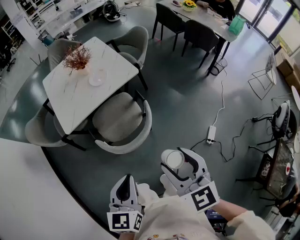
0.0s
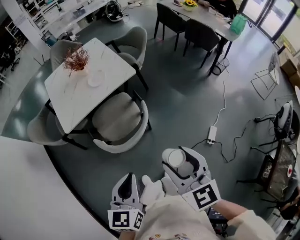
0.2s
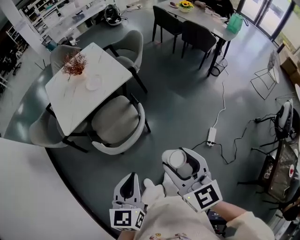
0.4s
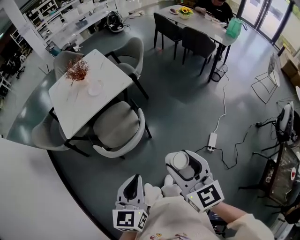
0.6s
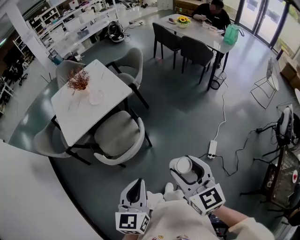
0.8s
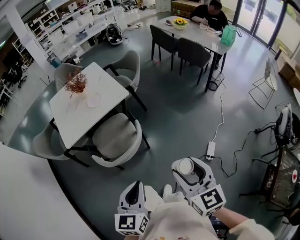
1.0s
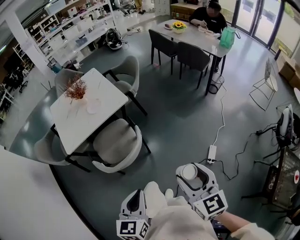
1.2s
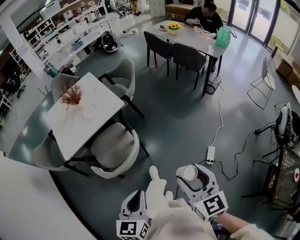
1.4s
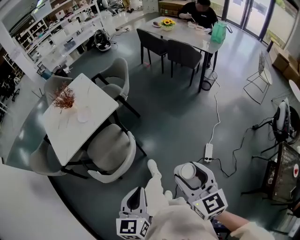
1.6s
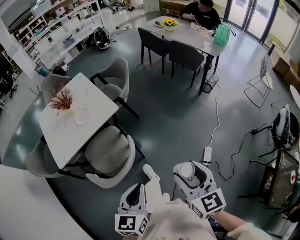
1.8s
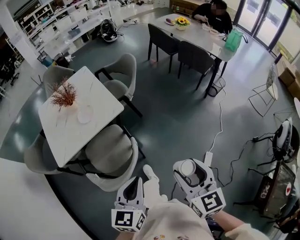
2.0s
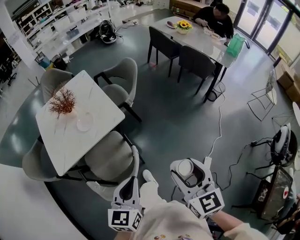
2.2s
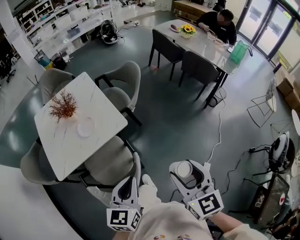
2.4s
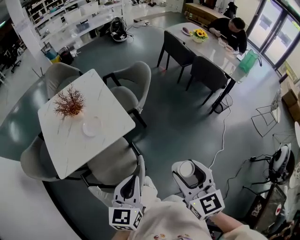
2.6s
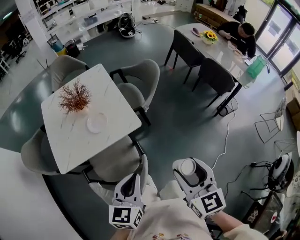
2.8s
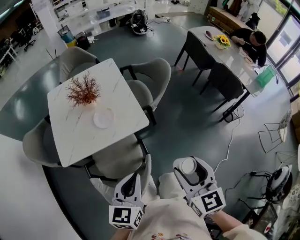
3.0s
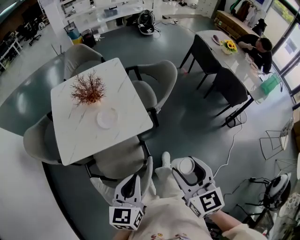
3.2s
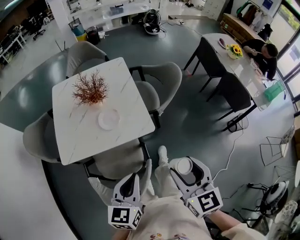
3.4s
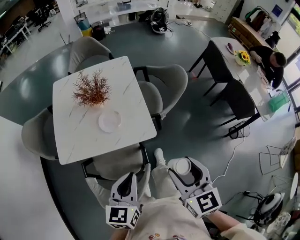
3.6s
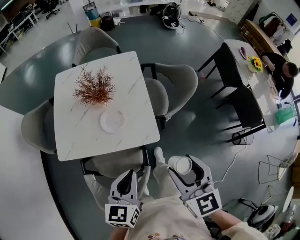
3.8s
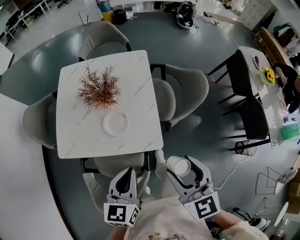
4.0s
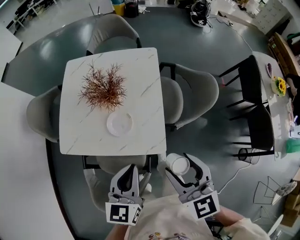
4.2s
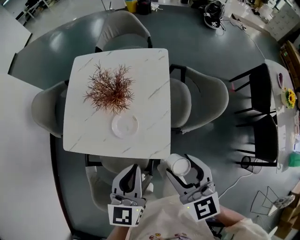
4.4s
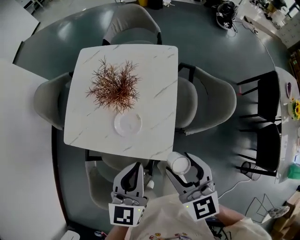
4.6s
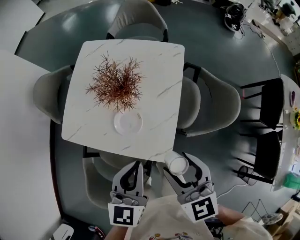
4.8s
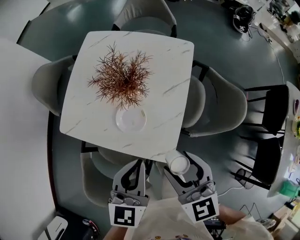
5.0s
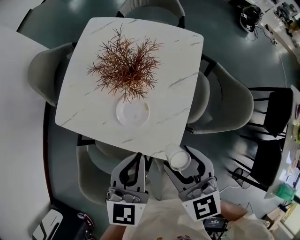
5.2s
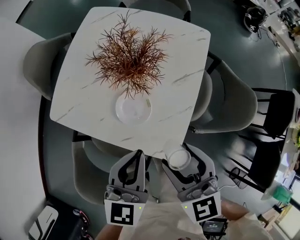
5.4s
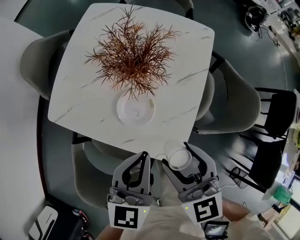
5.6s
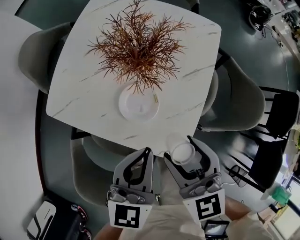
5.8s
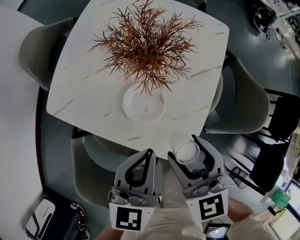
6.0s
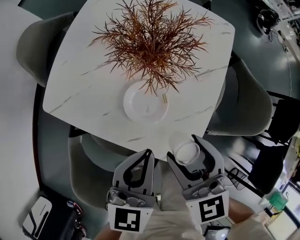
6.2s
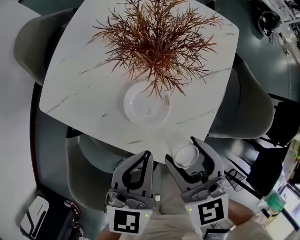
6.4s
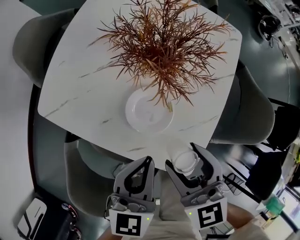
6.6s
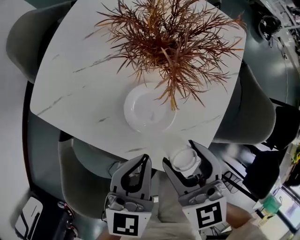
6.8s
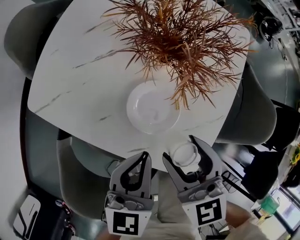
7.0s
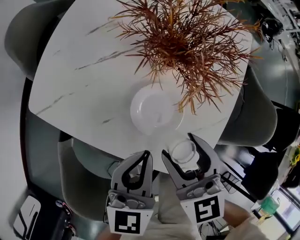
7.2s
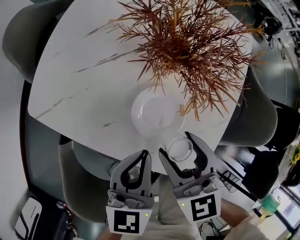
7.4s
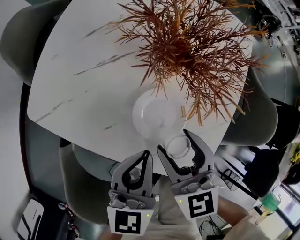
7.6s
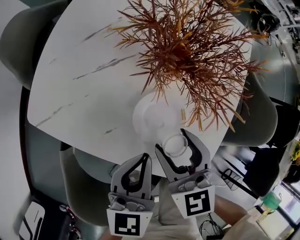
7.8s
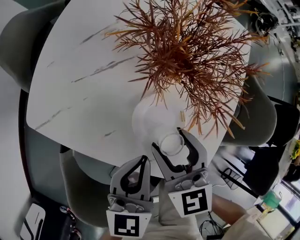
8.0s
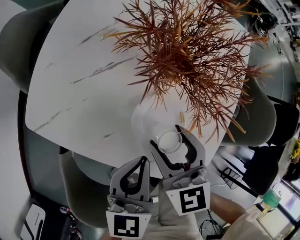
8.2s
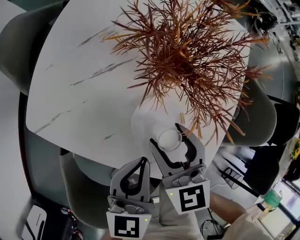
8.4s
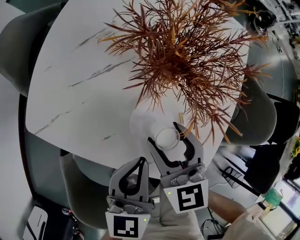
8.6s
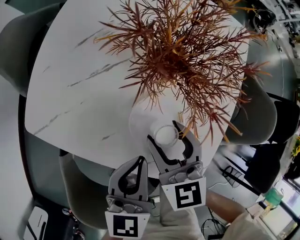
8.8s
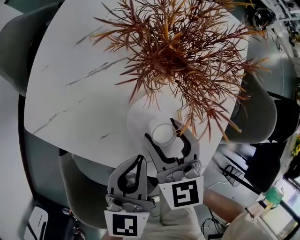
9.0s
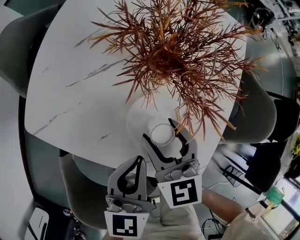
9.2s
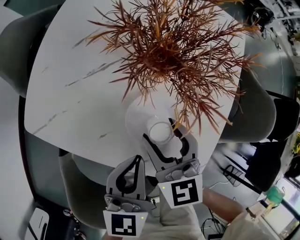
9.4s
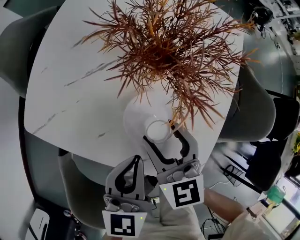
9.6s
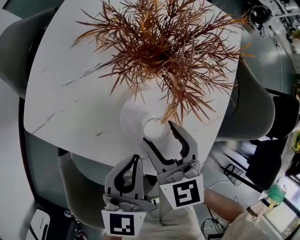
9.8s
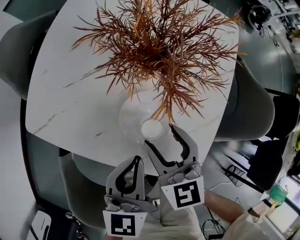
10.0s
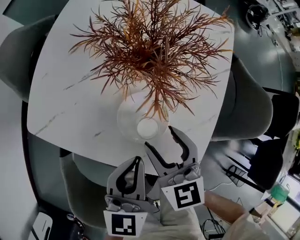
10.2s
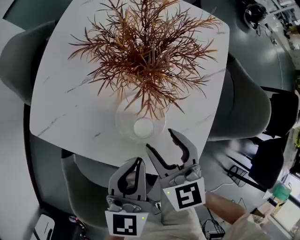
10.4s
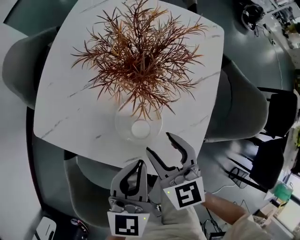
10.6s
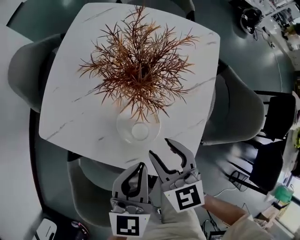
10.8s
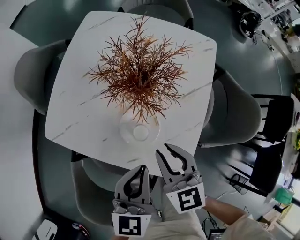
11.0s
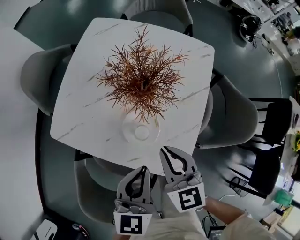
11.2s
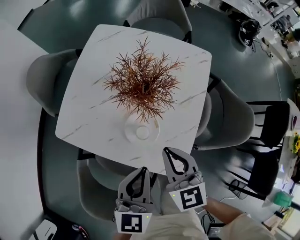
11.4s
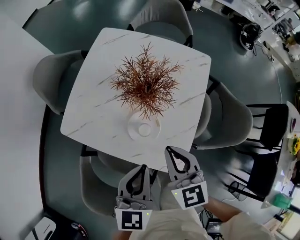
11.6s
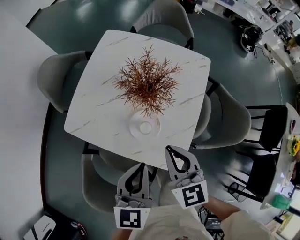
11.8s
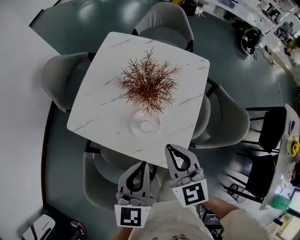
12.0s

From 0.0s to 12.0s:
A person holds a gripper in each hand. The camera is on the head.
From 0.0s to 1.6s: The two grippers go some 20 cm to the right.
From 1.6s to 3.0s: Both grippers travel together forward and to the left, roughly 35 cm.
From 3.0s to 4.4s: The right gripper ends up approximately 30 cm from where it was, and turns by approximately 40 degrees. The left gripper changes place by approximately 25 cm, and changes its angle by about 30 degrees.
From 4.4s to 6.0s: The left gripper heads downward and forward, covering some 15 cm; the right gripper travels downward, forward and to the left by some 20 cm, and turns by approximately 20 degrees.
From 6.0s to 7.6s: The right gripper heads downward, to the left and forward, covering some 15 cm, while the left gripper moves downward and to the left, approximately 10 cm.
From 7.6s to 9.0s: The right gripper moves roughly 5 cm.
From 9.0s to 10.4s: The right gripper moves some 5 cm. The left gripper changes place by some 5 cm.
From 10.4s to 12.0s: Both grippers travel together upward, roughly 20 cm. The right gripper closes up.

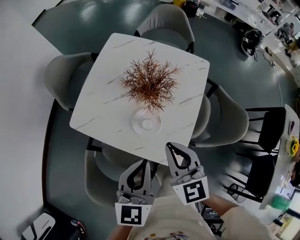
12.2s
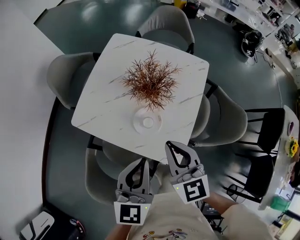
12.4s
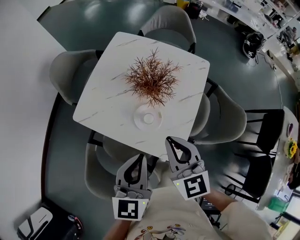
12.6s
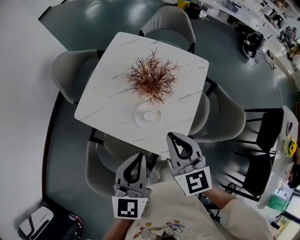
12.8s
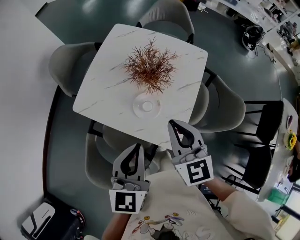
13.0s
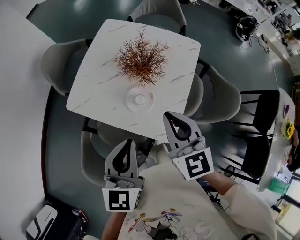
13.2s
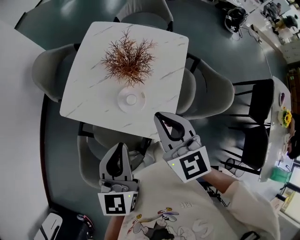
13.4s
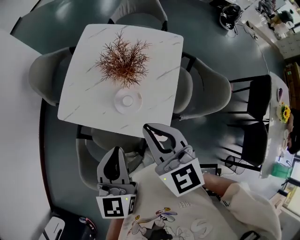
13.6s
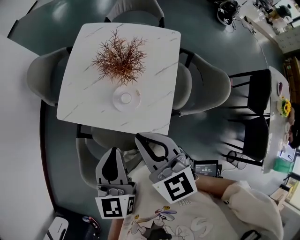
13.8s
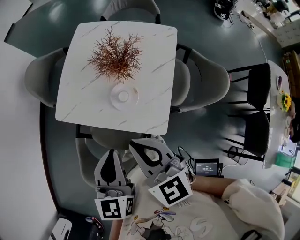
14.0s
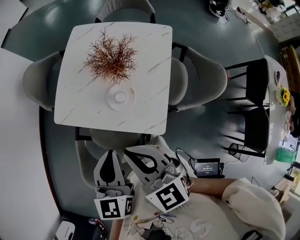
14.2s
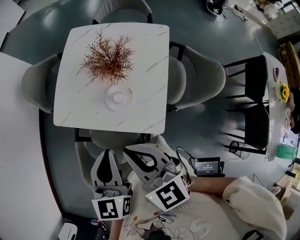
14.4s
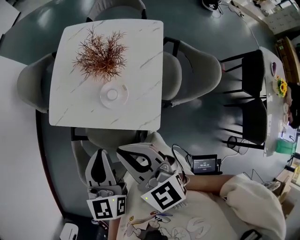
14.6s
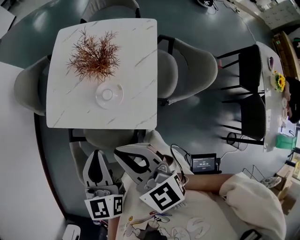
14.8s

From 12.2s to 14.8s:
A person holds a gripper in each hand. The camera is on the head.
From 12.2s to 13.4s: The right gripper travels upward by approximately 5 cm. The left gripper moves roughly 5 cm.
From 13.4s to 14.8s: The right gripper is displaced backward and to the left by approximately 10 cm.

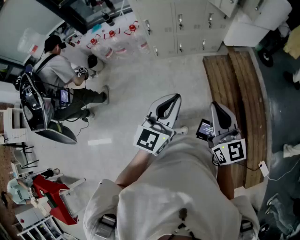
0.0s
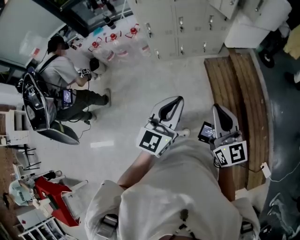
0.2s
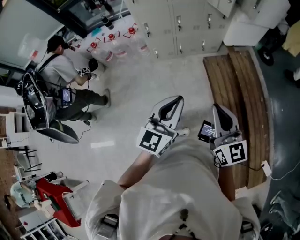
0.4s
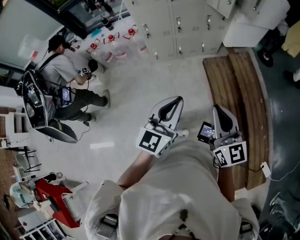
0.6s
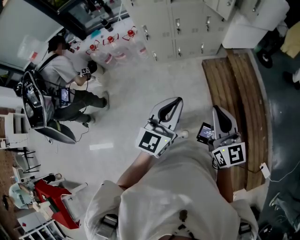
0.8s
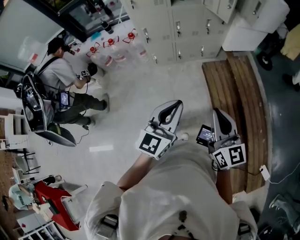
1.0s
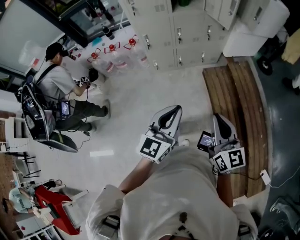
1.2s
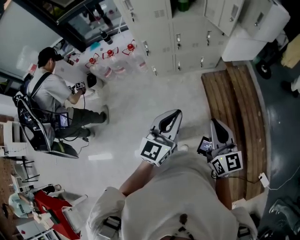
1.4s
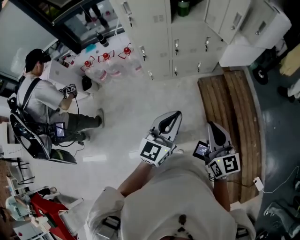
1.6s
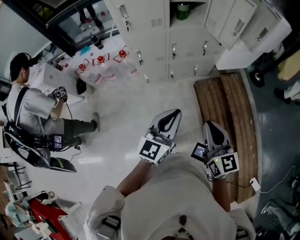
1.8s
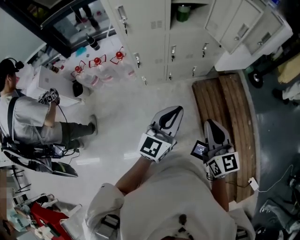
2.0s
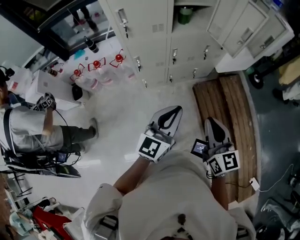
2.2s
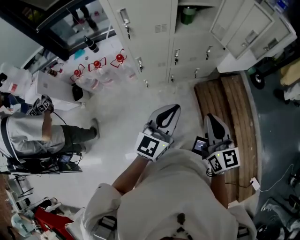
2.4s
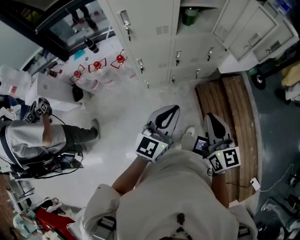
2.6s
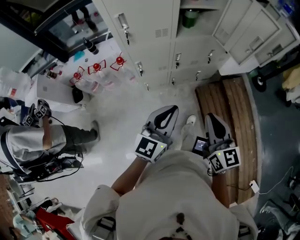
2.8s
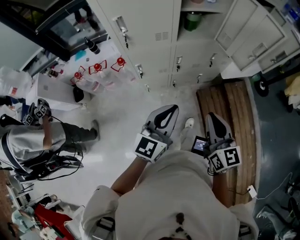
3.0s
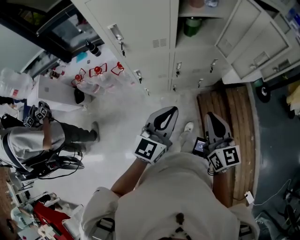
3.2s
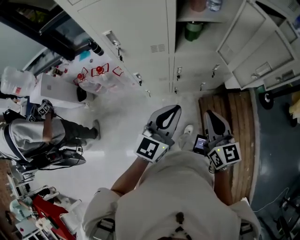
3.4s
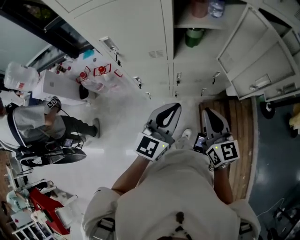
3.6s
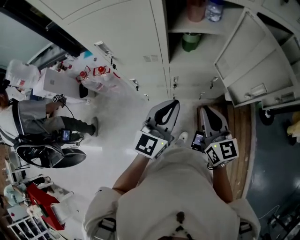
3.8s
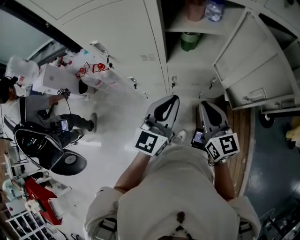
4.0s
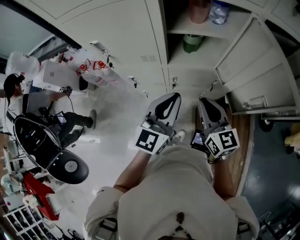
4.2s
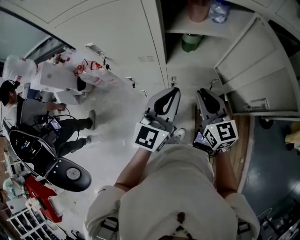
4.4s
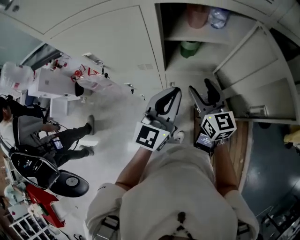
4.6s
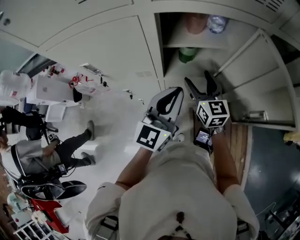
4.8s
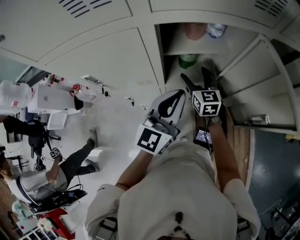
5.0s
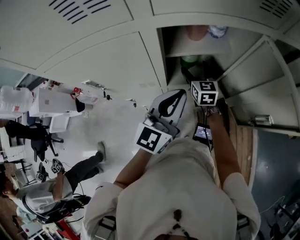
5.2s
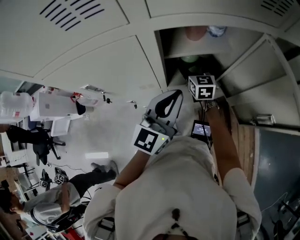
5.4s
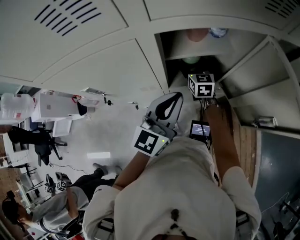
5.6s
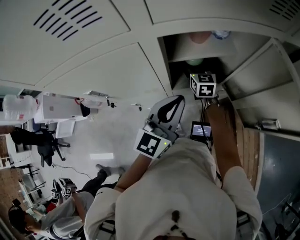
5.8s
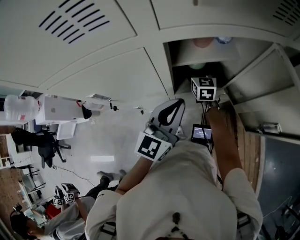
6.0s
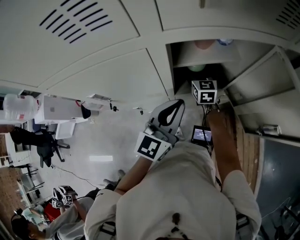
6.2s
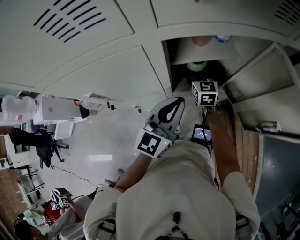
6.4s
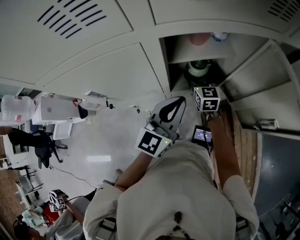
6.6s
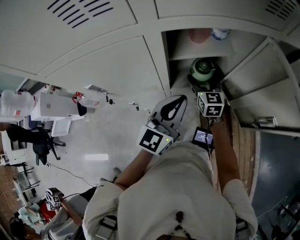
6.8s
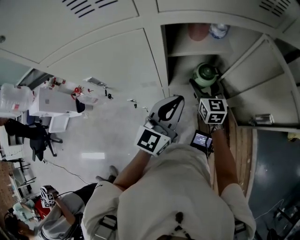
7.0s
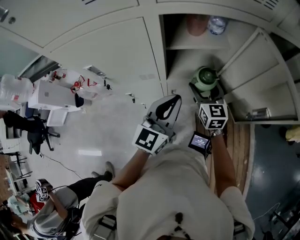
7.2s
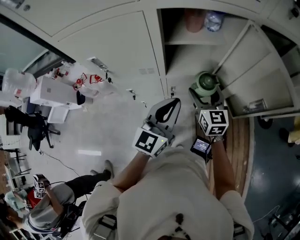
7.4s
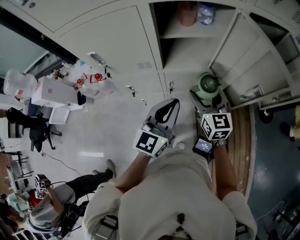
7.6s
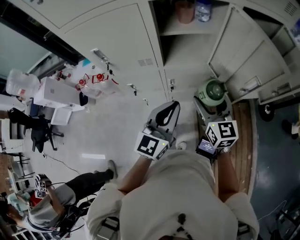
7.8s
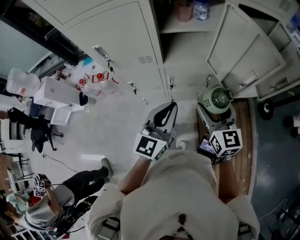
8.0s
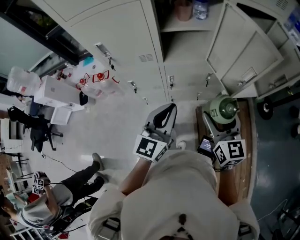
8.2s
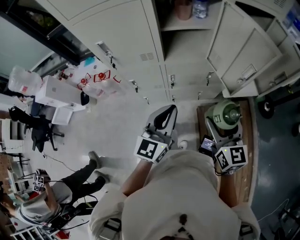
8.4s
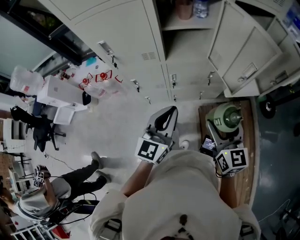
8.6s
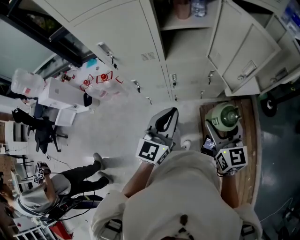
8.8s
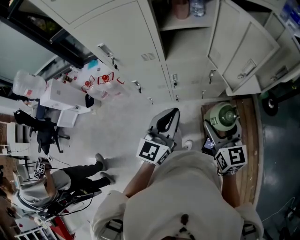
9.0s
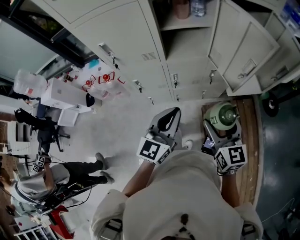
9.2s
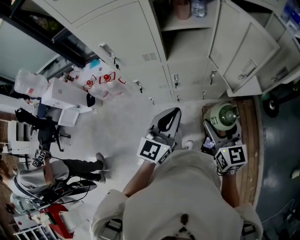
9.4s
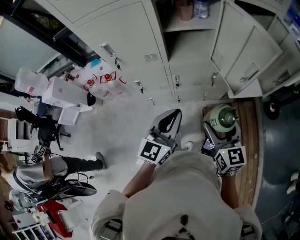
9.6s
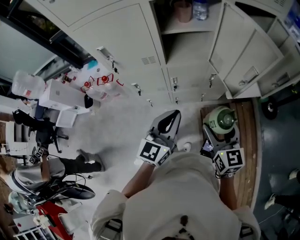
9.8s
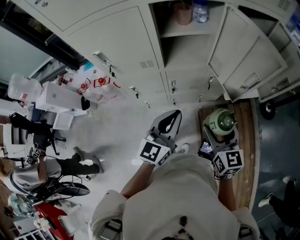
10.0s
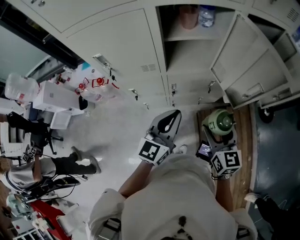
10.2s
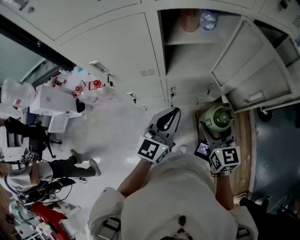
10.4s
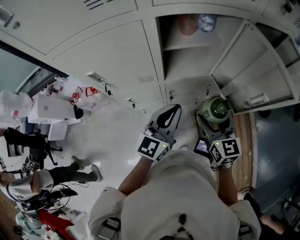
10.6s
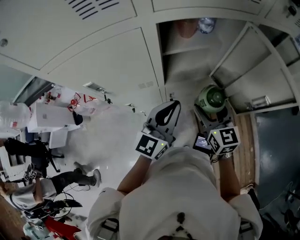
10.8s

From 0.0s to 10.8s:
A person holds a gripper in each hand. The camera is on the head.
From 0.0s to 1.6s: Both grippers move forward, approximately 15 cm.
From 1.6s to 3.0s: Both grippers travel together forward, roughly 25 cm.
From 3.0s to 4.6s: The left gripper travels forward and to the right by roughly 30 cm. Meanwhile the right gripper travels forward by roughly 35 cm, and opens up.
From 4.6s to 6.2s: The right gripper heads forward and downward, covering some 25 cm. The left gripper travels forward by roughly 5 cm.
From 6.2s to 7.8s: The right gripper moves backward, about 30 cm, while the left gripper travels backward by roughly 20 cm.
From 7.8s to 9.2s: The left gripper shifts roughly 10 cm backward; the right gripper moves backward, some 15 cm.
From 9.2s to 10.8s: The right gripper heads forward and to the left, covering approximately 25 cm. The left gripper goes roughly 20 cm forward.
